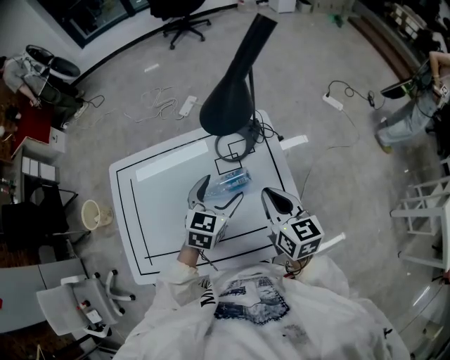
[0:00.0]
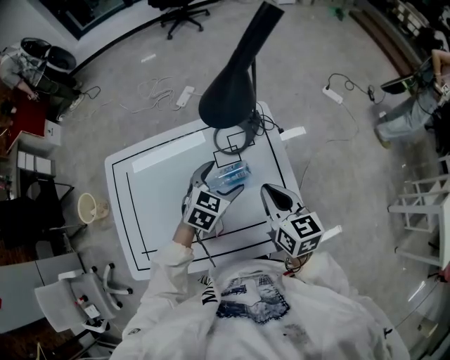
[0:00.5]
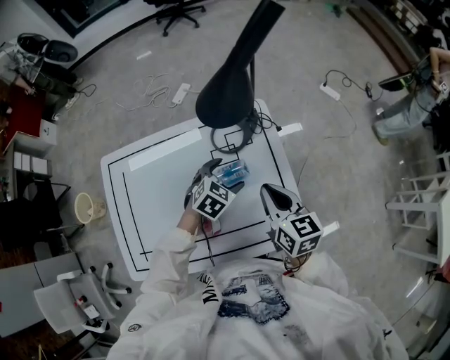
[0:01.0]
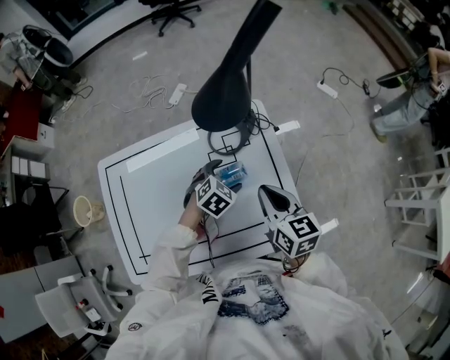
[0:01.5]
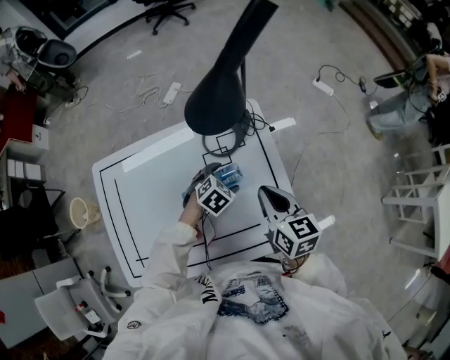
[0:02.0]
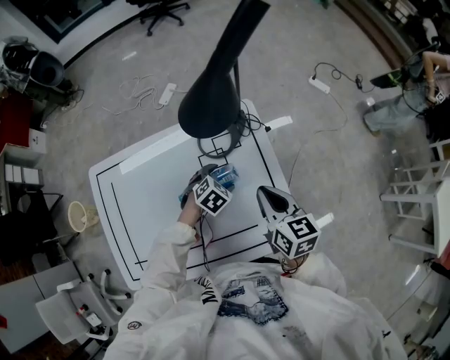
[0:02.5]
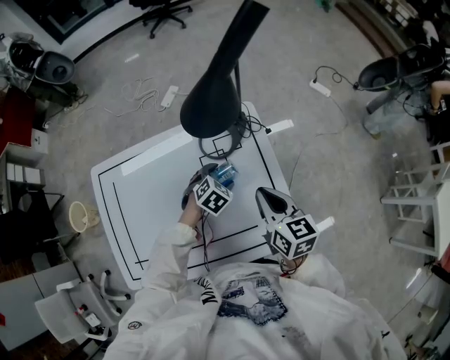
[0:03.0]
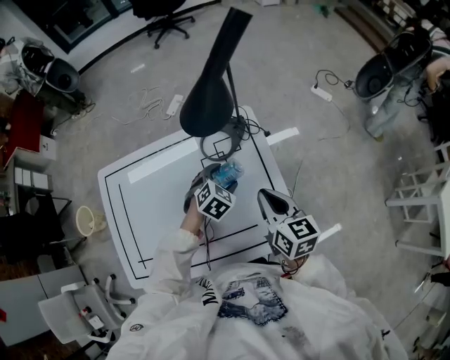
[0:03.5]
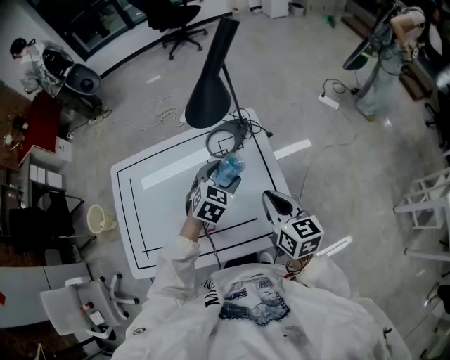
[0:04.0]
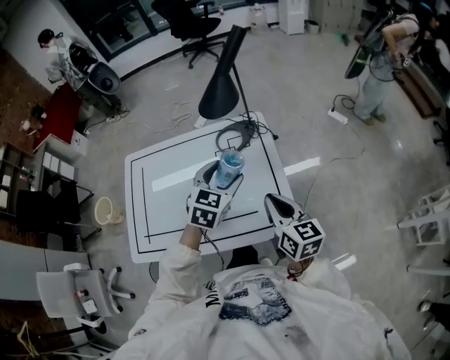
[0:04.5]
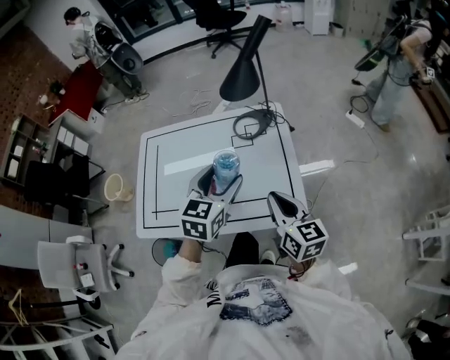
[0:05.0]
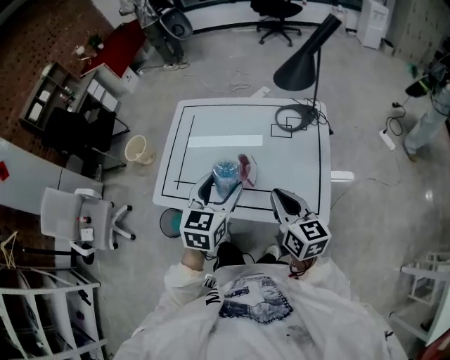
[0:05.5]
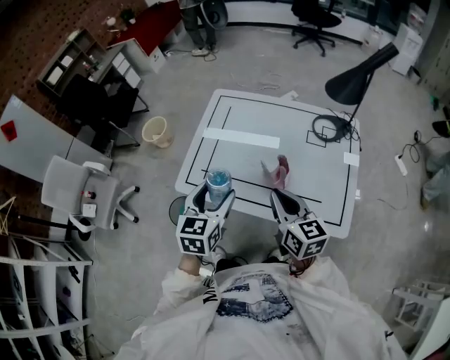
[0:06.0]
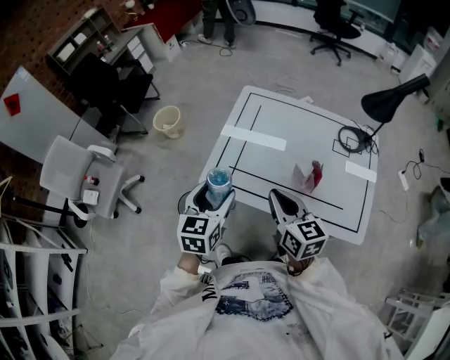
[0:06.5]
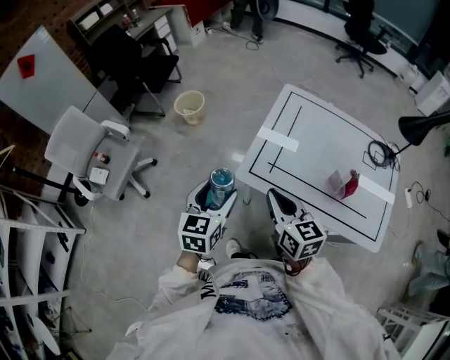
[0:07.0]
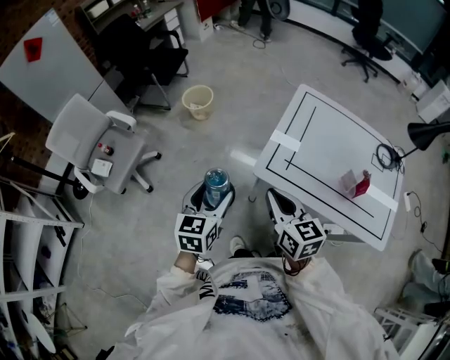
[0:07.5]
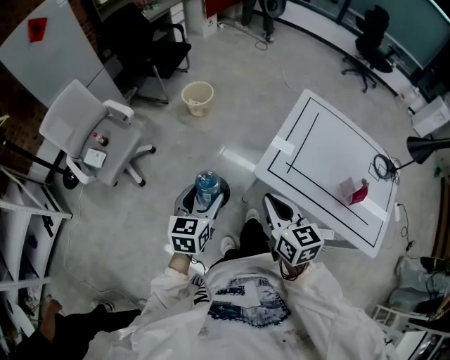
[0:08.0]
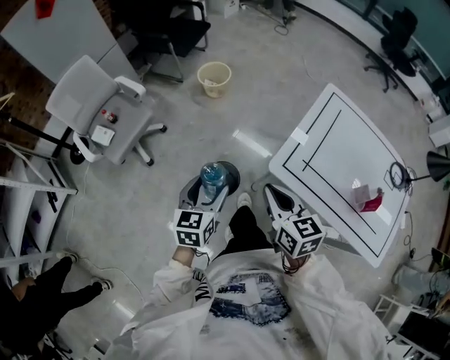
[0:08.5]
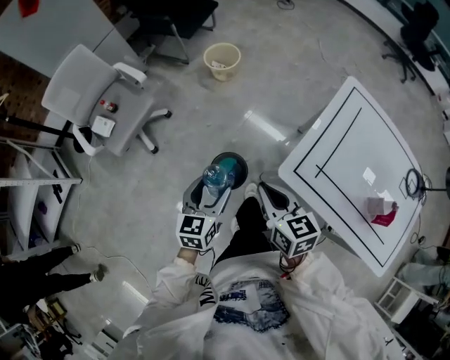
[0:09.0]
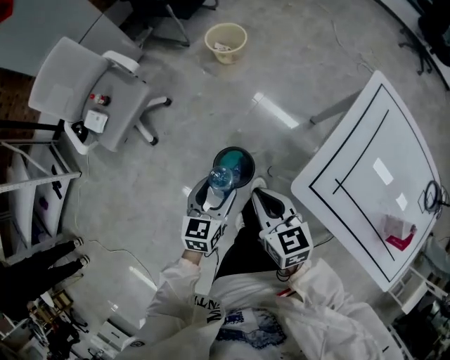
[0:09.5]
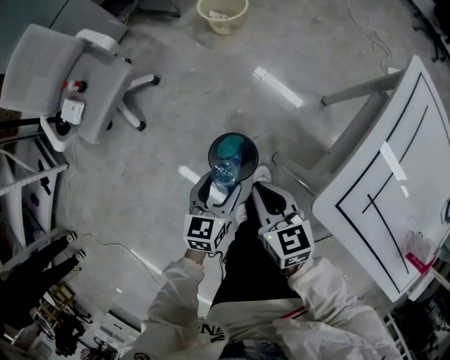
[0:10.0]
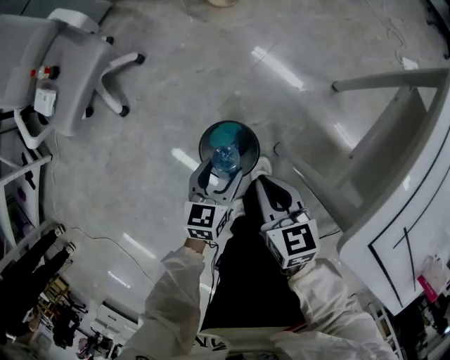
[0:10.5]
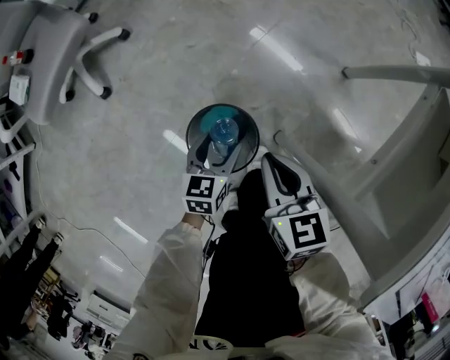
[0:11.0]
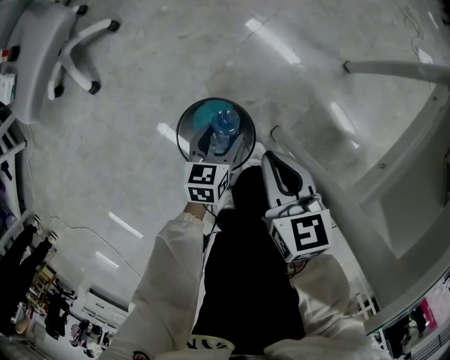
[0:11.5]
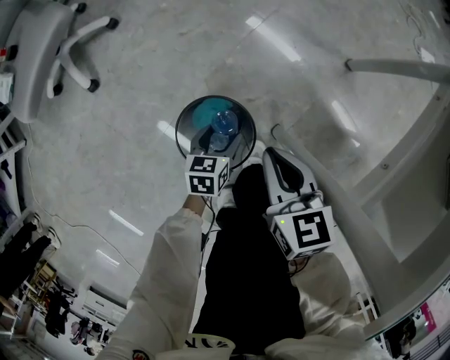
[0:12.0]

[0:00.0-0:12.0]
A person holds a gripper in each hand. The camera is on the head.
0:00.0 to 0:02.0: The left gripper is displaced downward by about 15 cm, and turns by roughly 40 degrees.
0:02.0 to 0:04.0: The left gripper shifts some 15 cm upward, and rotates approximately 20 degrees; the right gripper travels backward by roughly 5 cm.
0:04.0 to 0:06.0: The left gripper changes place by about 40 cm, and rotates some 60 degrees; the right gripper moves some 30 cm, and rotates approximately 30 degrees.
0:06.0 to 0:08.0: The two grippers travel together, to the left, about 40 cm.
0:08.0 to 0:10.0: The left gripper heads downward, covering some 35 cm, while the right gripper shifts approximately 35 cm downward and forward, and swivels roughly 20 degrees.
0:10.0 to 0:12.0: The grippers both shift downward by some 30 cm.

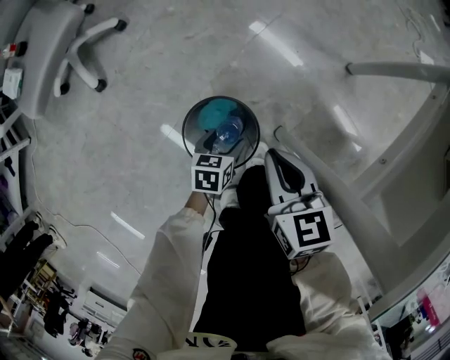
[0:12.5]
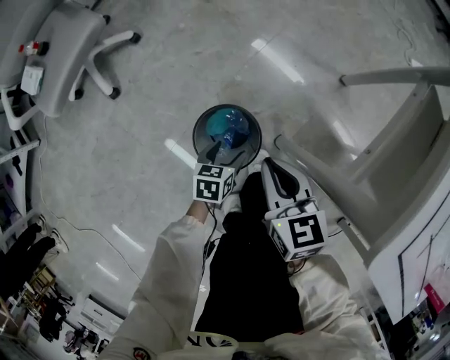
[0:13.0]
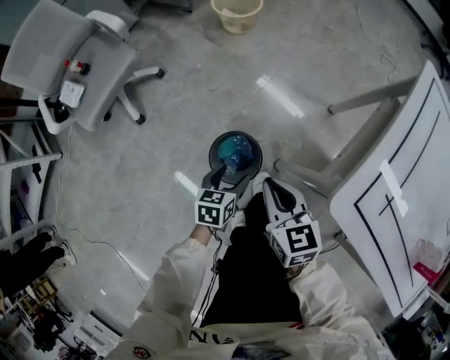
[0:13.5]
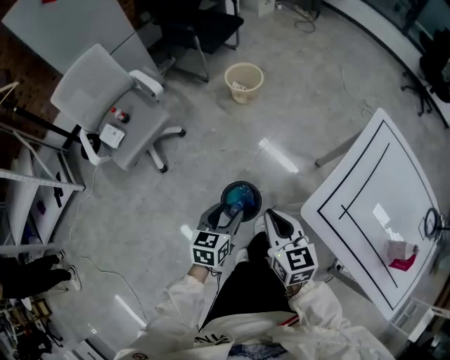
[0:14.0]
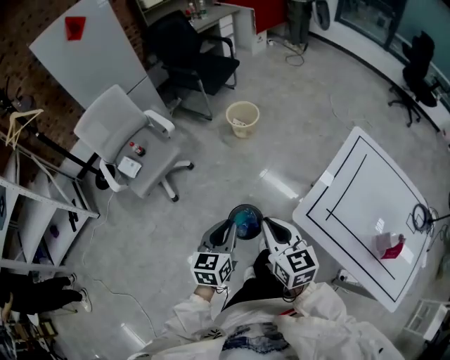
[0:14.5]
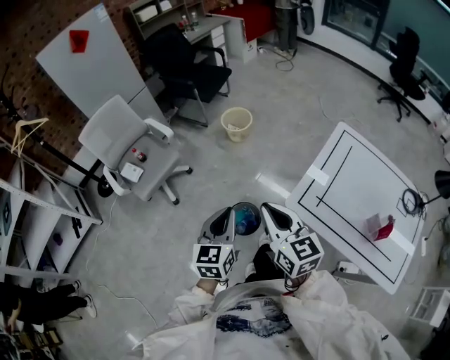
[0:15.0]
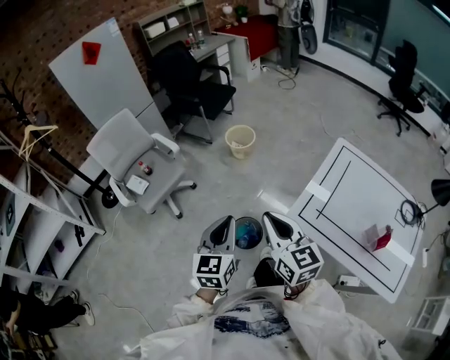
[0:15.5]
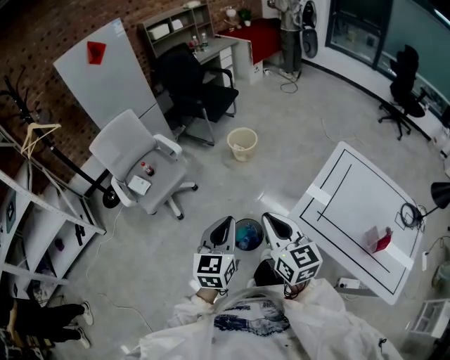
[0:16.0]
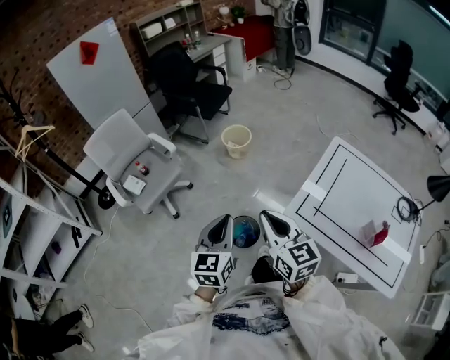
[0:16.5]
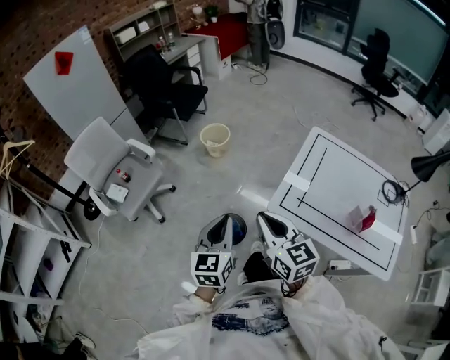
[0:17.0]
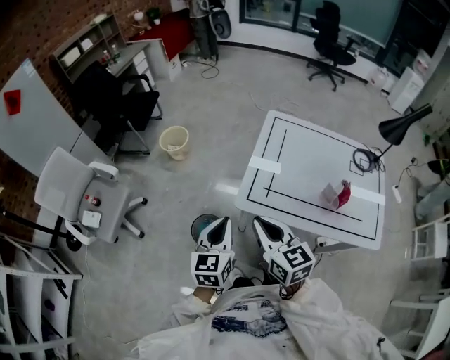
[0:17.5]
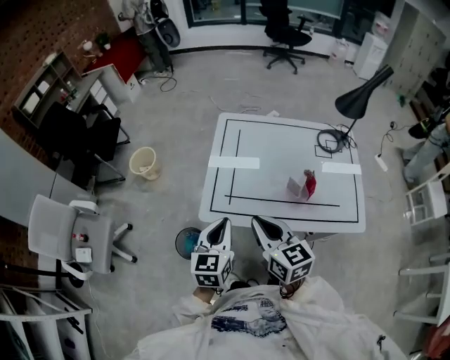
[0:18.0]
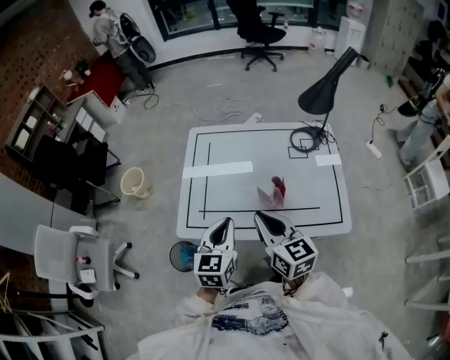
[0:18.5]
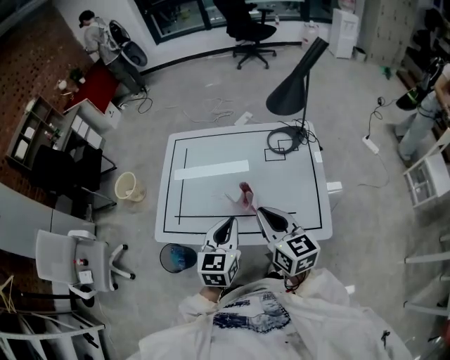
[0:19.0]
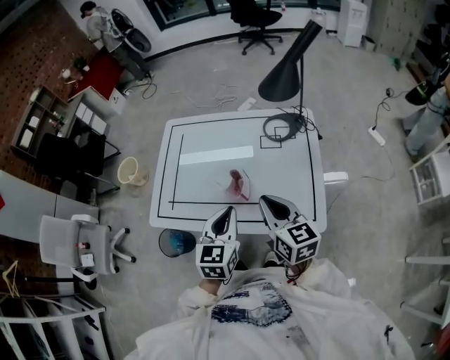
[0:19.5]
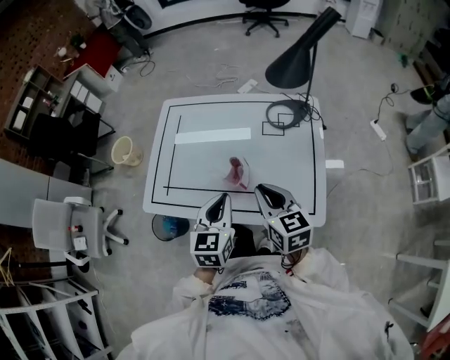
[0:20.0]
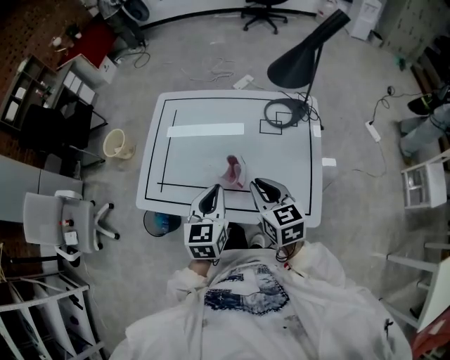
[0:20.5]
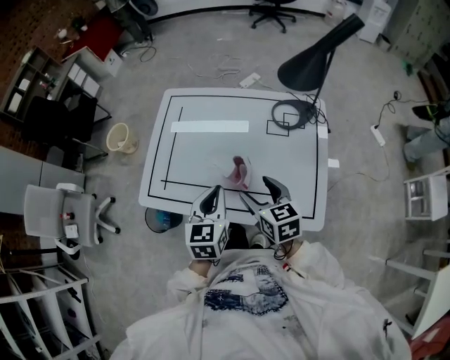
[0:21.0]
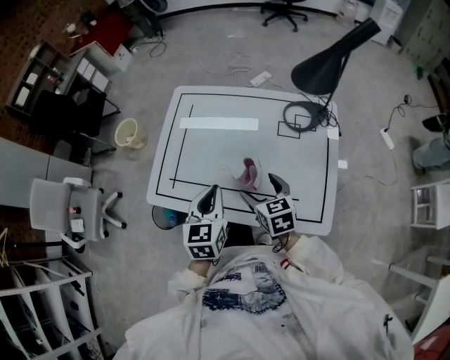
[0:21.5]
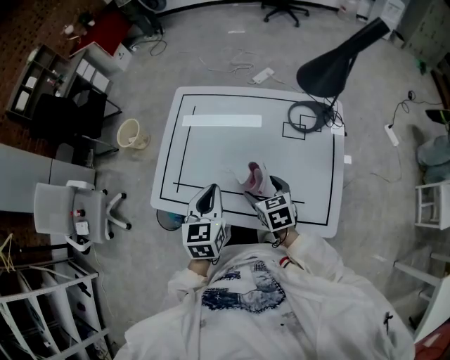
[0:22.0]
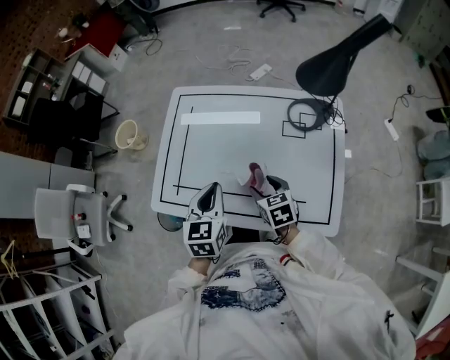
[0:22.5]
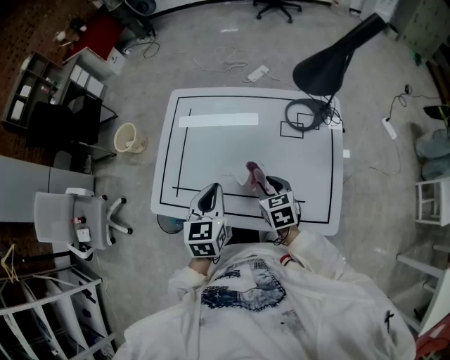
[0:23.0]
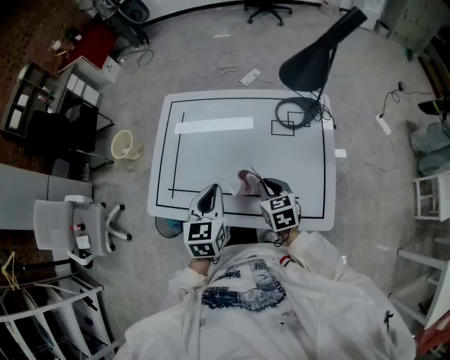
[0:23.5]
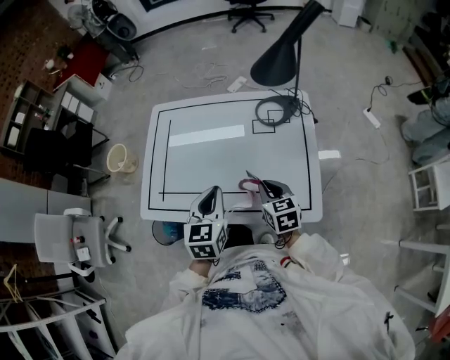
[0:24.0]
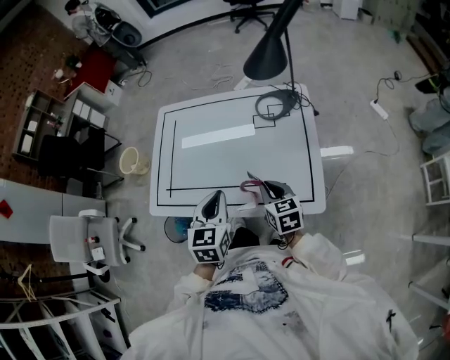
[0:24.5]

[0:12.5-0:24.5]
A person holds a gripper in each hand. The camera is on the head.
0:12.5 to 0:14.5: Both grippers travel together upward, about 60 cm. The left gripper points its fingers some 30 degrees further upward, and closes, while the right gripper changes its angle by some 20 degrees.
0:14.5 to 0:16.5: Both grippers move upward, roughly 15 cm.
0:16.5 to 0:18.5: Both grippers are carried roughly 40 cm. The right gripper rotates roughly 40 degrees. The left gripper swivels about 40 degrees.
0:18.5 to 0:20.5: The right gripper goes approximately 20 cm to the right and downward. Meanwhile the left gripper heads to the right, covering some 15 cm.
0:20.5 to 0:22.5: The right gripper travels downward and forward by roughly 15 cm, and opens, while the left gripper shifts approximately 10 cm forward and to the left.
0:22.5 to 0:24.5: The grippers both shift backward and to the right by about 15 cm. The right gripper closes its fingers.

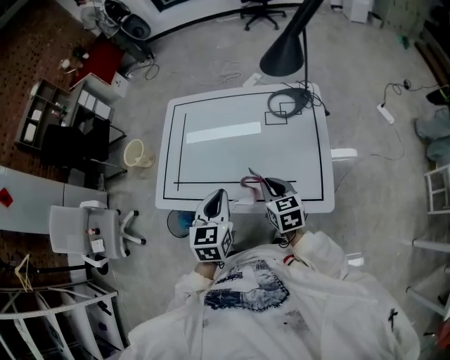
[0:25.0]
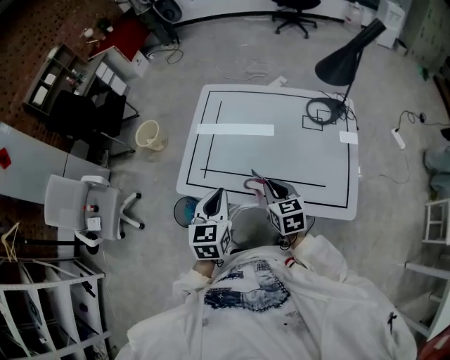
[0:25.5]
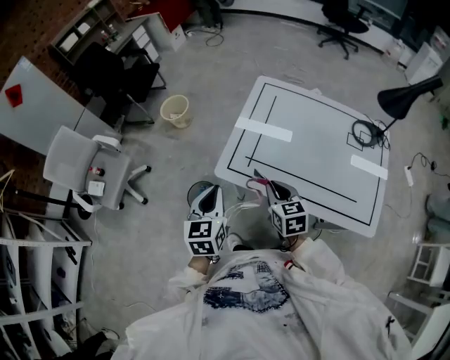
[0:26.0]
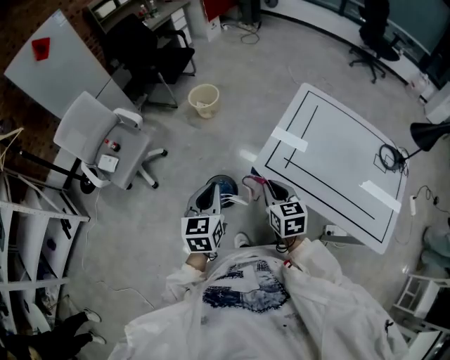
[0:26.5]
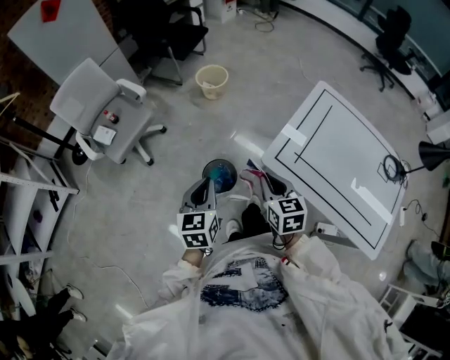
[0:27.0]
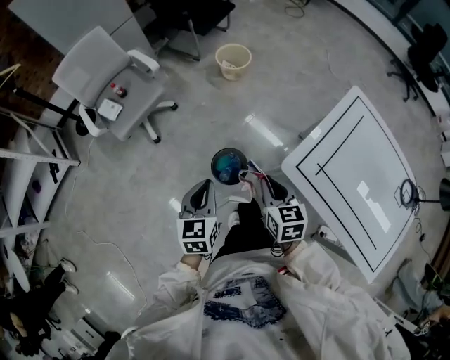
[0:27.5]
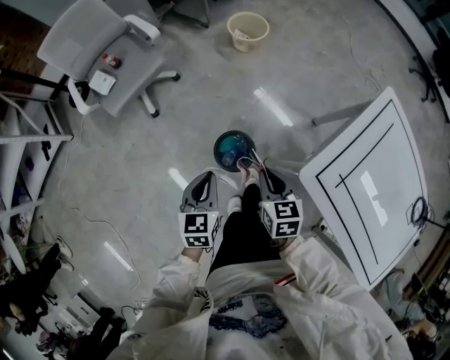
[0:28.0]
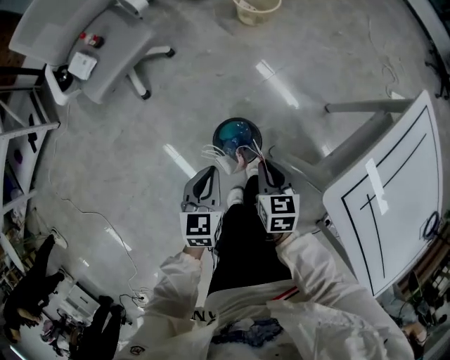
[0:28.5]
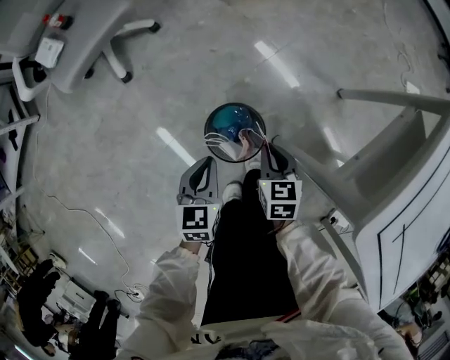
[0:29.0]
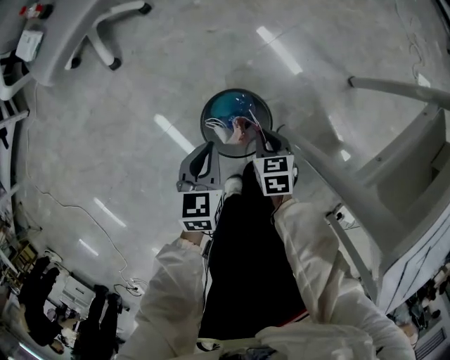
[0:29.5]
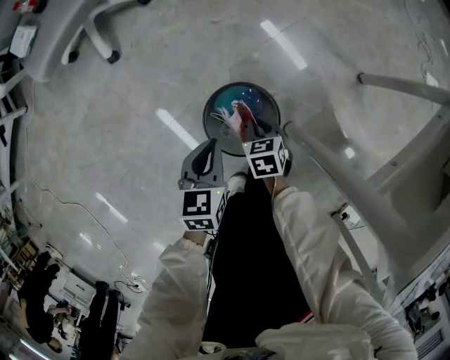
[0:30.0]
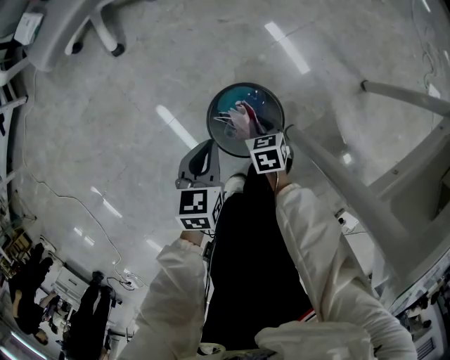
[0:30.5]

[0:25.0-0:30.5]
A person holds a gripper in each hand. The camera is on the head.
0:25.0 to 0:27.0: Both grippers are carried roughly 50 cm. The left gripper changes its angle by roughly 40 degrees. The right gripper rotates some 30 degrees.
0:27.0 to 0:28.5: The left gripper is displaced downward by some 30 cm; the right gripper moves downward and forward, roughly 35 cm.
0:28.5 to 0:30.5: Both grippers move downward, about 35 cm. The right gripper turns by roughly 20 degrees.
